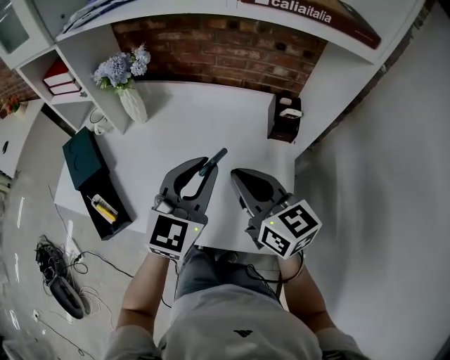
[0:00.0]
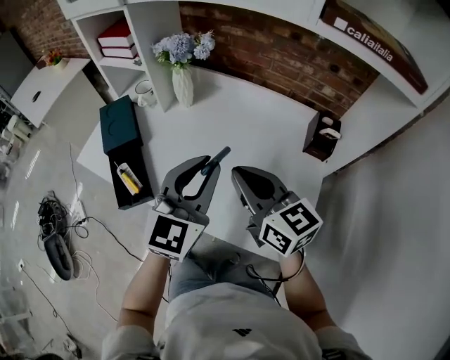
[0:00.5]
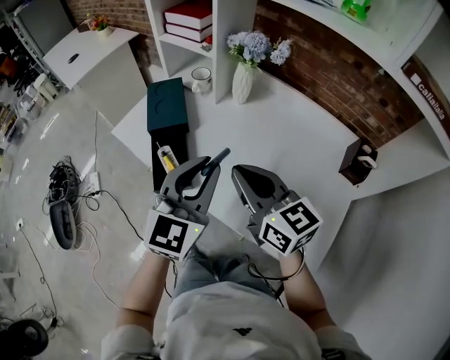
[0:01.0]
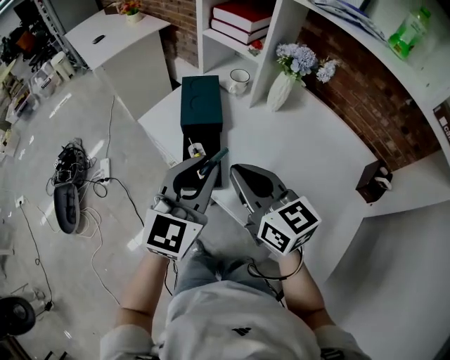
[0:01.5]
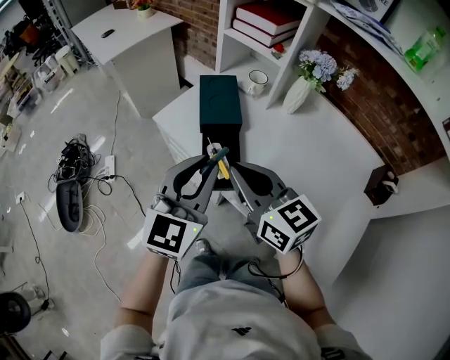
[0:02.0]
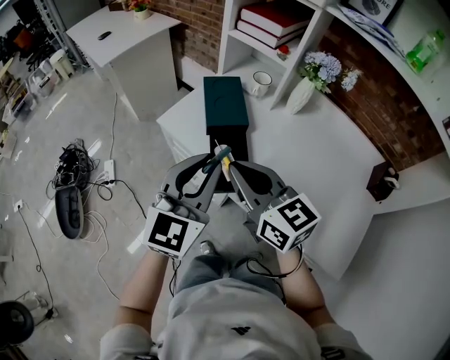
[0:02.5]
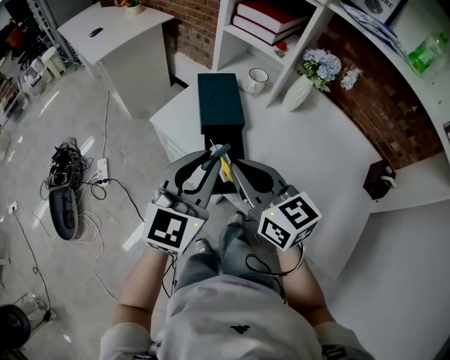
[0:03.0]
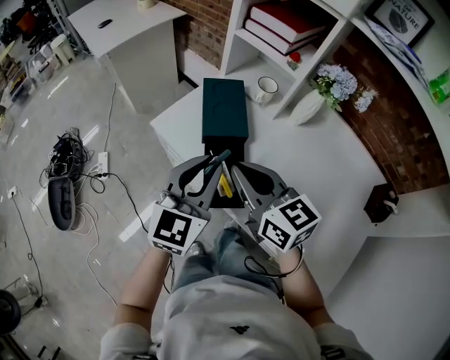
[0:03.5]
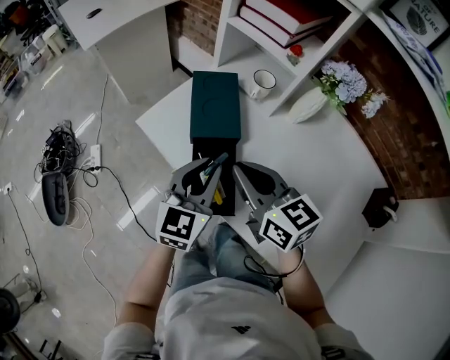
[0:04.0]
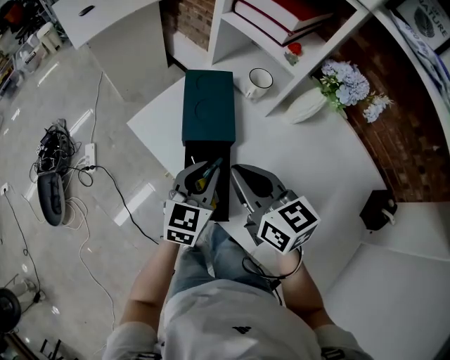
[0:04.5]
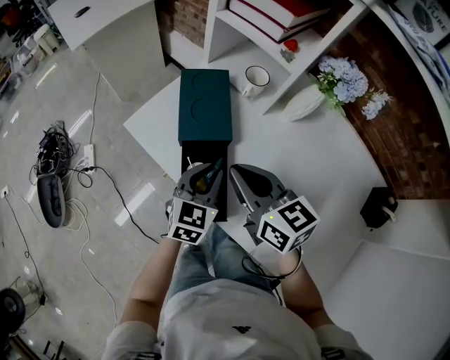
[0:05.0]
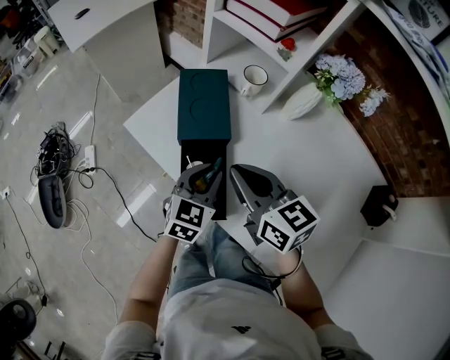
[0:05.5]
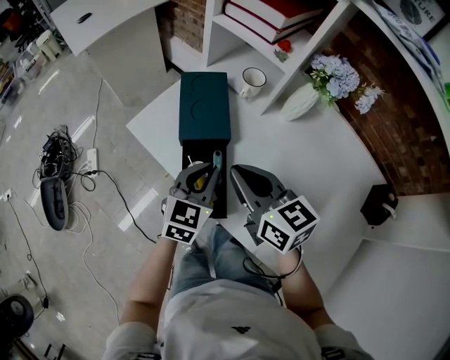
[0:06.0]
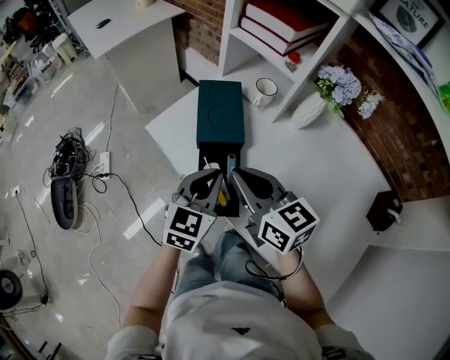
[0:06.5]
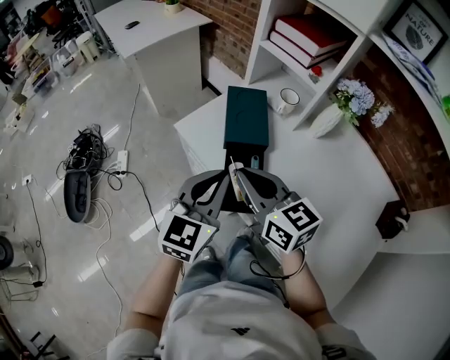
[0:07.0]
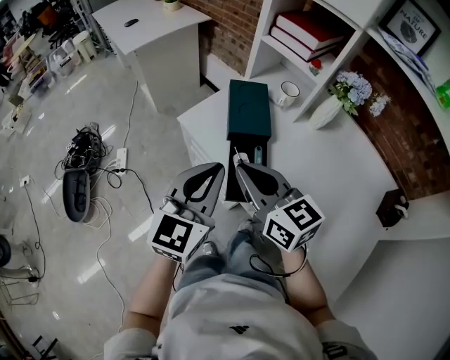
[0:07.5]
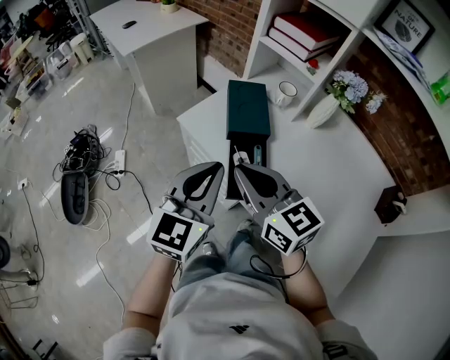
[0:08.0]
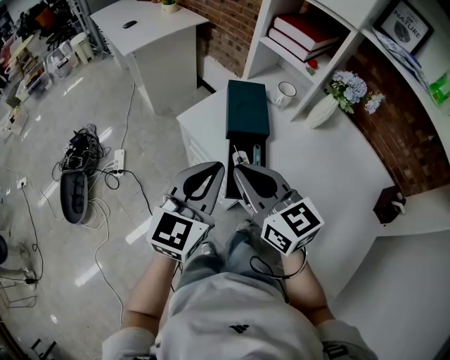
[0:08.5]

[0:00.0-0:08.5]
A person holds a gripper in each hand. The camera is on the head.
0:00.0 to 0:02.0: Both grippers are carried roughly 40 cm. The right gripper swivels about 30 degrees. The left gripper swivels some 30 degrees.
0:02.0 to 0:04.0: Both grippers travel together forward and downward, some 15 cm.
0:04.0 to 0:06.5: The left gripper moves approximately 10 cm downward and comes back.
0:06.5 to 0:08.5: The left gripper goes roughly 15 cm upward, to the left and backward. Meanwhile the right gripper goes roughly 10 cm to the left and backward.

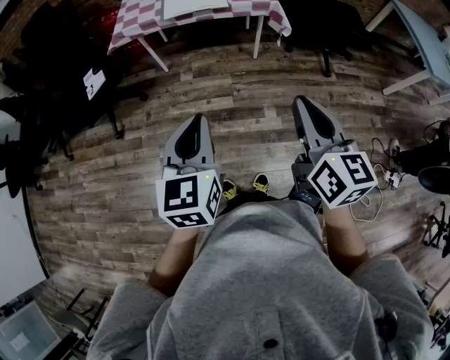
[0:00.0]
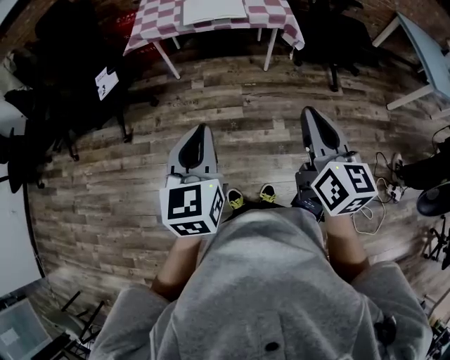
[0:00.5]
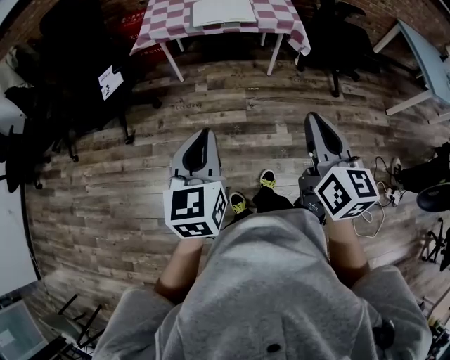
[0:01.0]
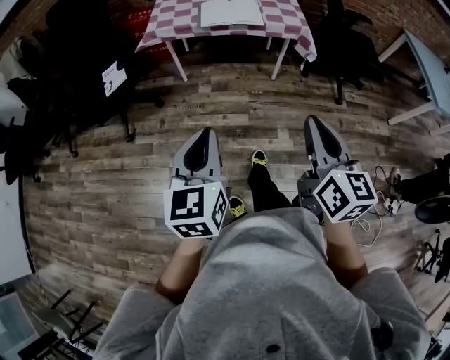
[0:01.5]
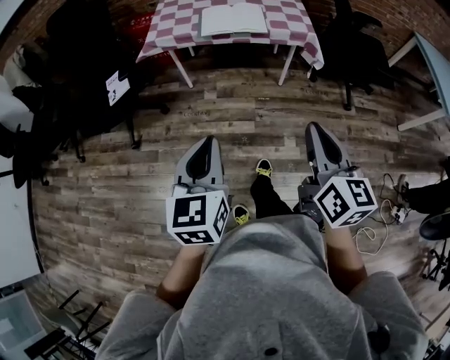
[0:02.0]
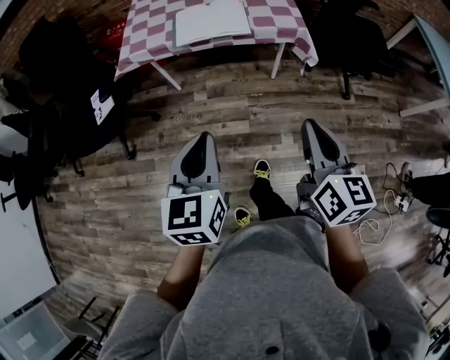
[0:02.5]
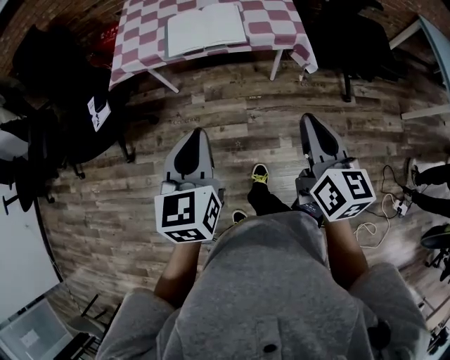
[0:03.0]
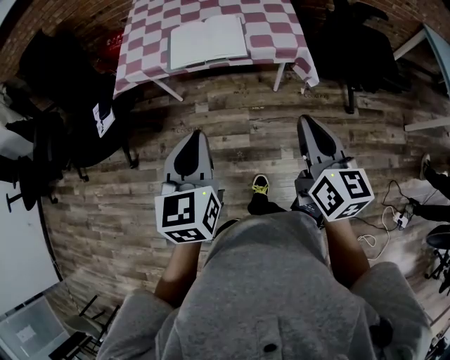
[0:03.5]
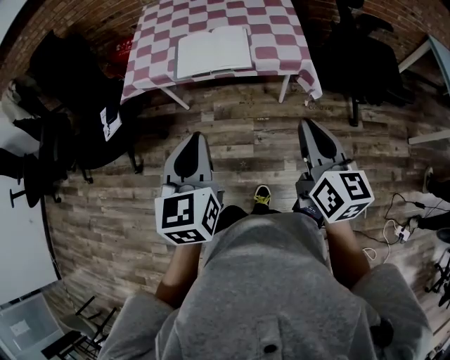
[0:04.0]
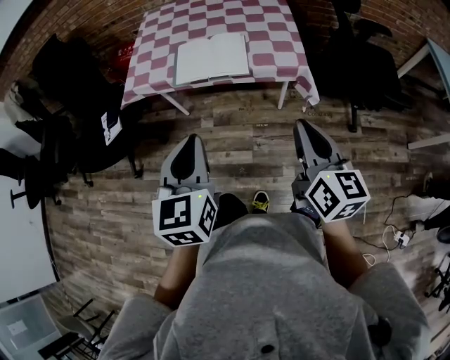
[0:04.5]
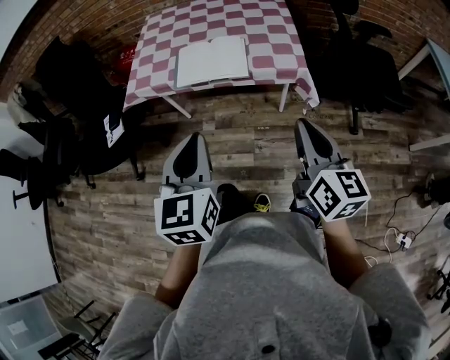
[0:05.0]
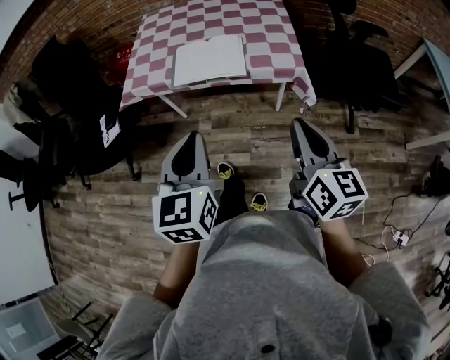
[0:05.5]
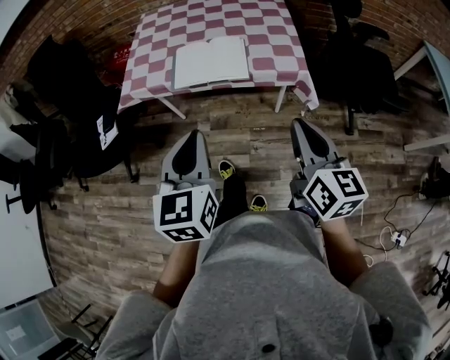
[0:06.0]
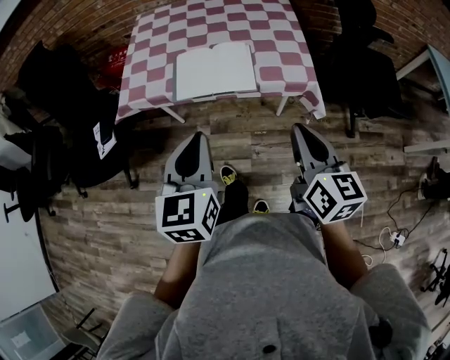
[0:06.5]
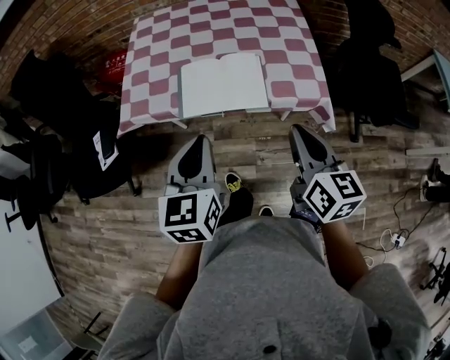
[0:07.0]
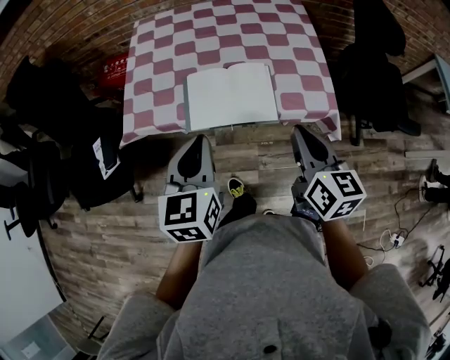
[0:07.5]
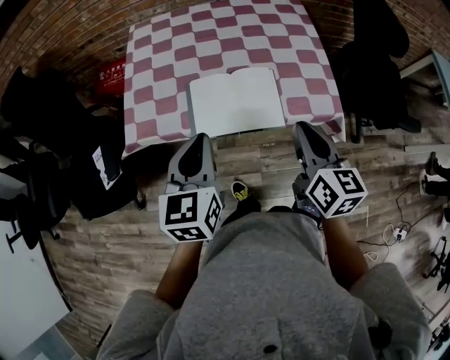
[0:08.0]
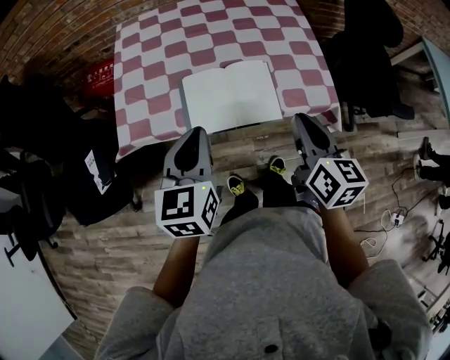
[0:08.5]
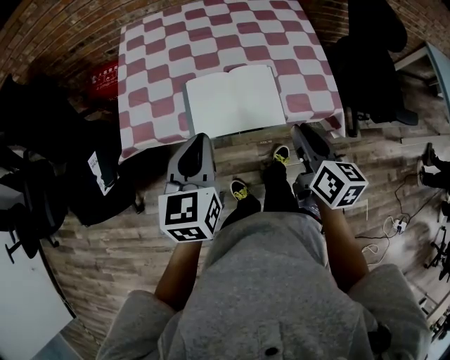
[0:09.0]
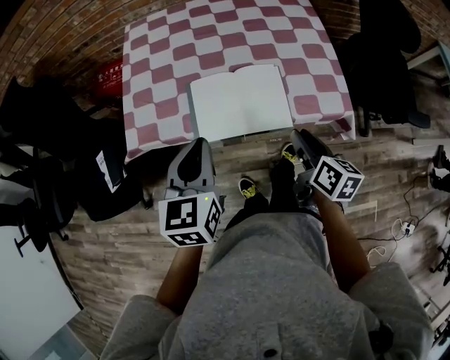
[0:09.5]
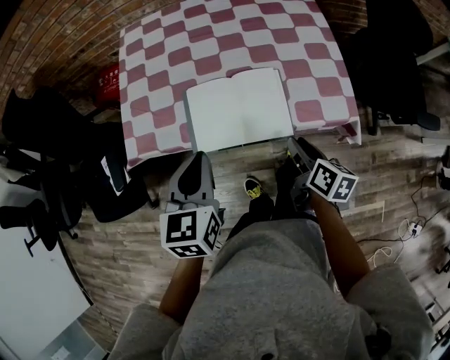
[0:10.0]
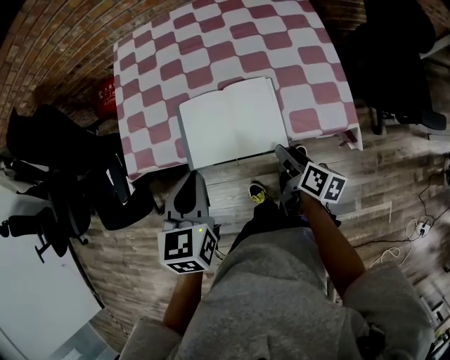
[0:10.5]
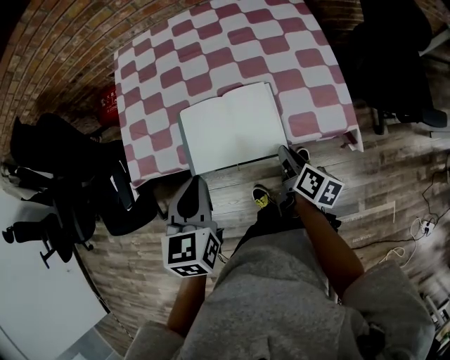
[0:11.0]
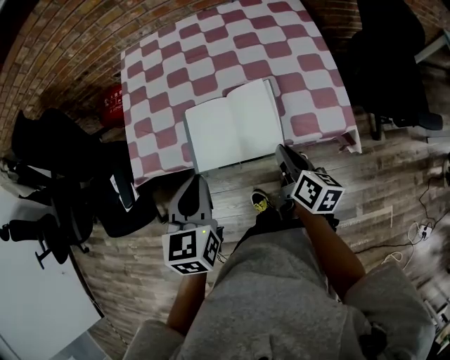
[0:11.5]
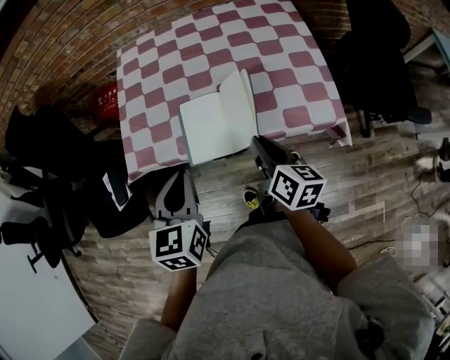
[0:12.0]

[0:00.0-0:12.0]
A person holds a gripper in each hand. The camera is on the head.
0:00.0 to 0:02.0: The left gripper goes approximately 10 cm to the left; the right gripper is displaced forward and to the left by approximately 10 cm.
0:02.0 to 0:04.0: The right gripper goes approximately 25 cm forward and to the right; the left gripper moves forward, about 25 cm.
0:04.0 to 0:06.0: The grippers move only a little.
0:06.0 to 0:08.0: The right gripper moves forward and to the left, about 25 cm, while the left gripper travels forward by some 25 cm.
0:08.0 to 0:10.0: The right gripper is displaced downward by some 15 cm, turns by roughly 30 degrees, and opens up, while the left gripper changes place by roughly 5 cm.
0:10.0 to 0:12.0: The right gripper heads to the left and upward, covering approximately 10 cm, and closes its fingers.

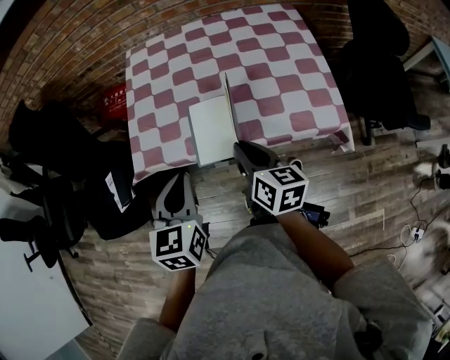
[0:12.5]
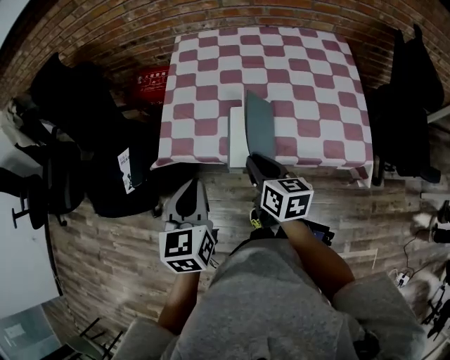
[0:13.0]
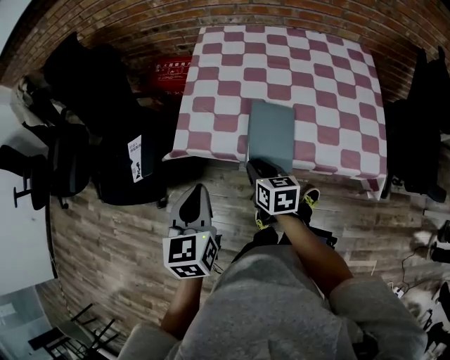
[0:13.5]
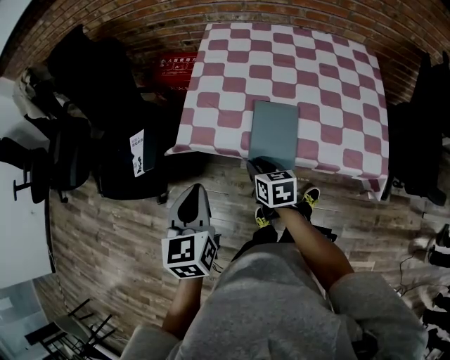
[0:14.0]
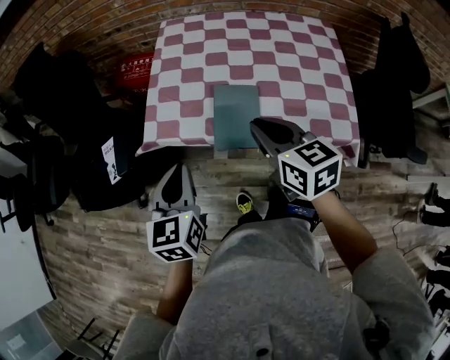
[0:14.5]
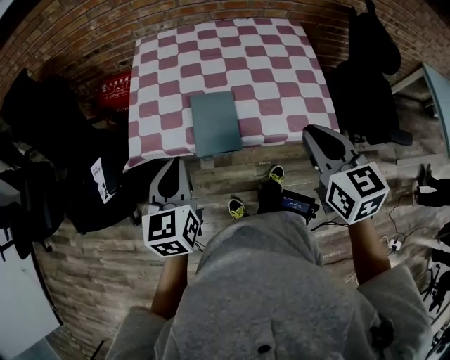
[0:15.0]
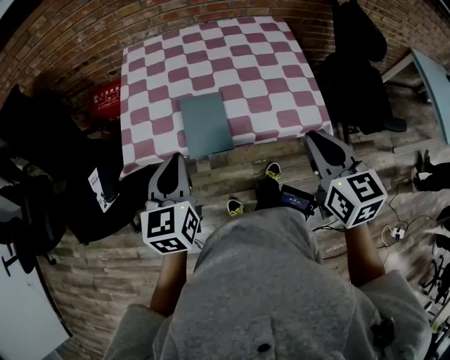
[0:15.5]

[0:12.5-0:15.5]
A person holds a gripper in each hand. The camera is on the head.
0:12.5 to 0:14.0: The right gripper shifts approximately 20 cm to the left and downward, and rotates approximately 30 degrees; the left gripper goes some 15 cm to the left.
0:14.0 to 0:15.5: The right gripper changes place by some 40 cm, and swivels about 30 degrees; the left gripper ends up roughly 10 cm from where it was, and changes its angle by approximately 20 degrees.

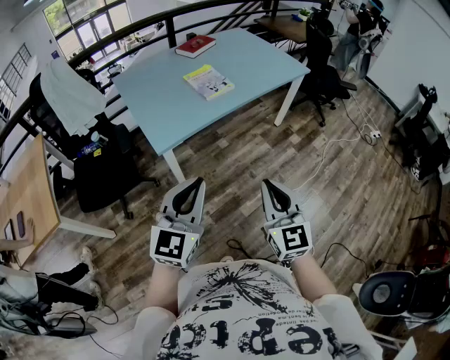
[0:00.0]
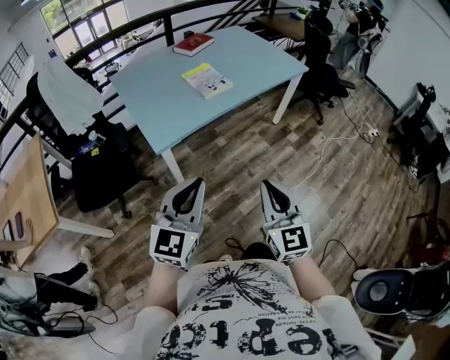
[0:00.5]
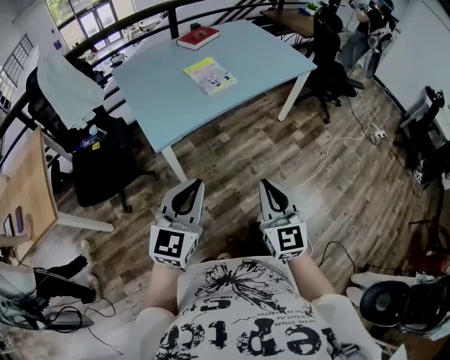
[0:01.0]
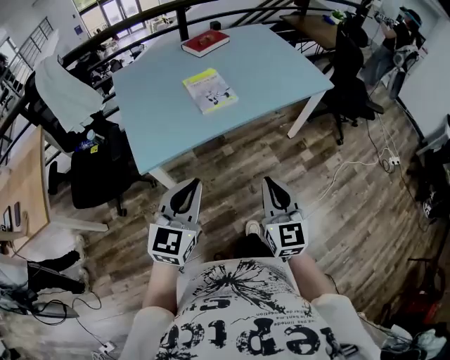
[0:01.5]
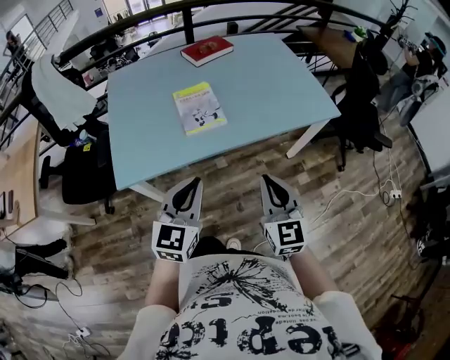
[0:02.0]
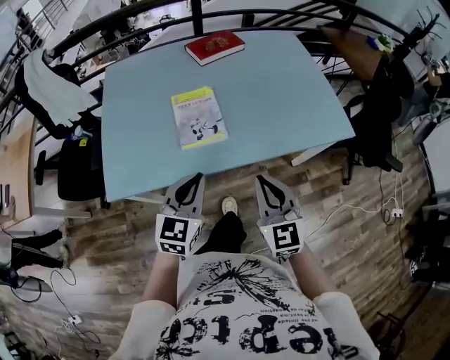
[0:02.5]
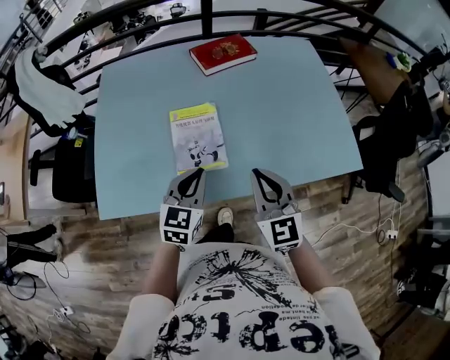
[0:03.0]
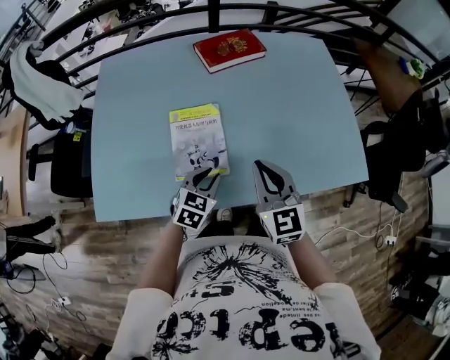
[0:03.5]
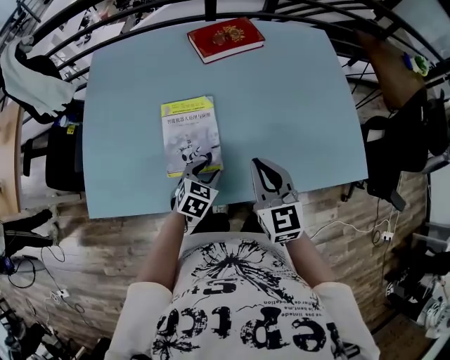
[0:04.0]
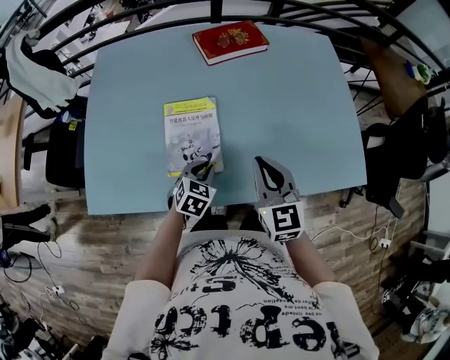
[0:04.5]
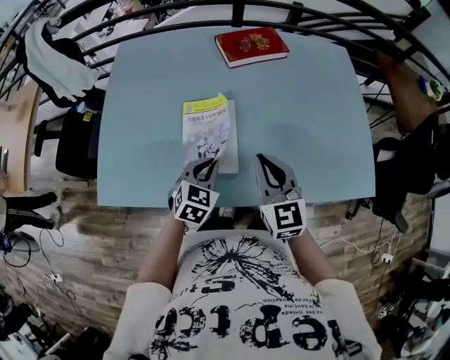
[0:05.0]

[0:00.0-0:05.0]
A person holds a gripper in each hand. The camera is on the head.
0:00.0 to 0:02.5: Both grippers are carried forward, approximately 50 cm. The left gripper changes its angle by some 30 degrees. The right gripper swivels some 30 degrees.
0:02.5 to 0:05.0: The left gripper shifts approximately 25 cm forward and downward, turns by about 20 degrees, and opens, then closes again. Meanwhile the right gripper travels forward by some 25 cm.
